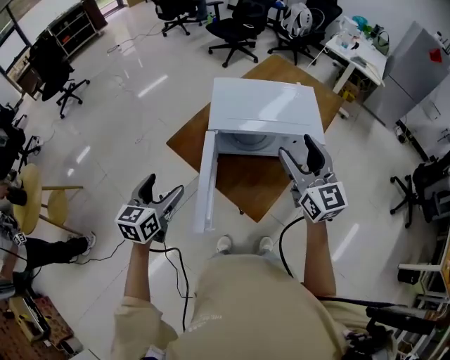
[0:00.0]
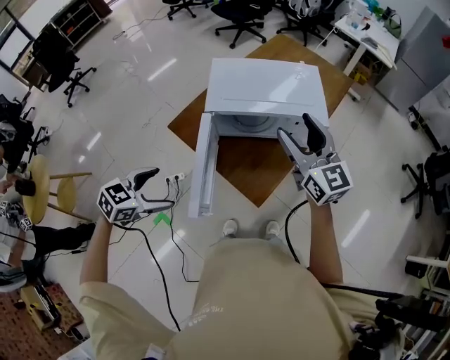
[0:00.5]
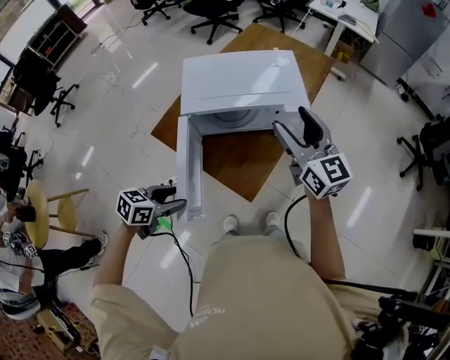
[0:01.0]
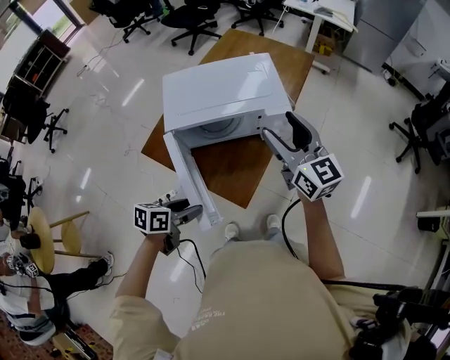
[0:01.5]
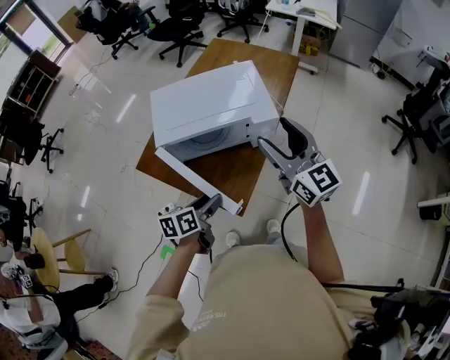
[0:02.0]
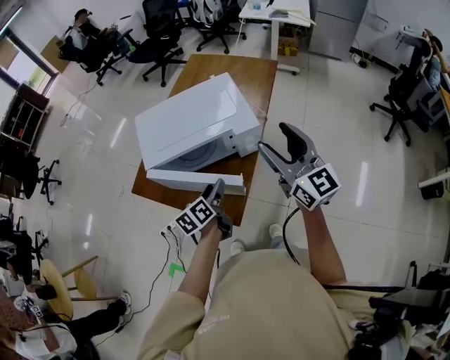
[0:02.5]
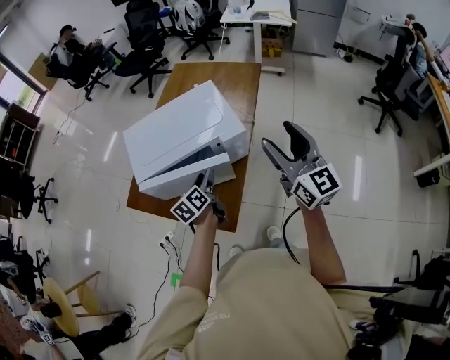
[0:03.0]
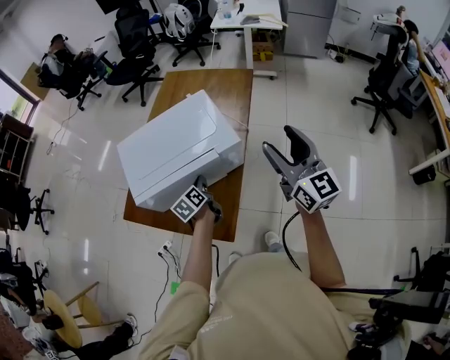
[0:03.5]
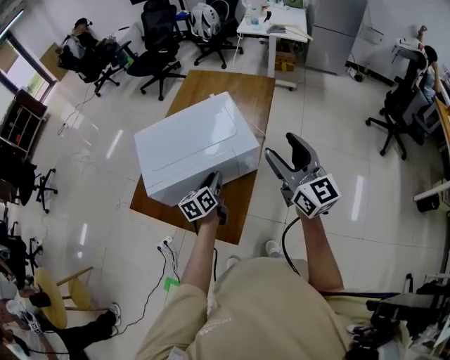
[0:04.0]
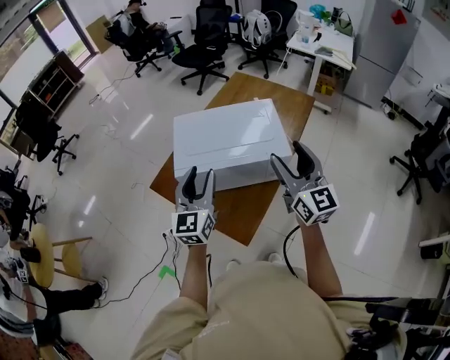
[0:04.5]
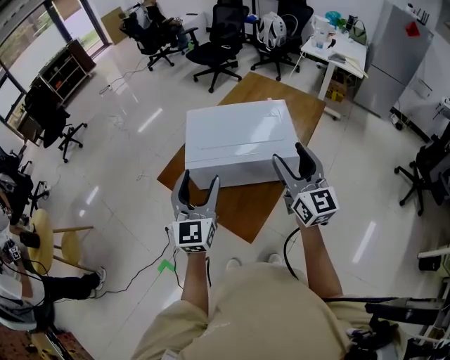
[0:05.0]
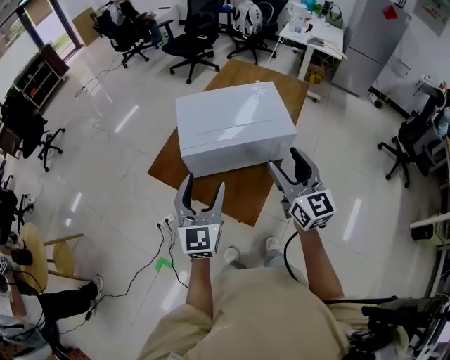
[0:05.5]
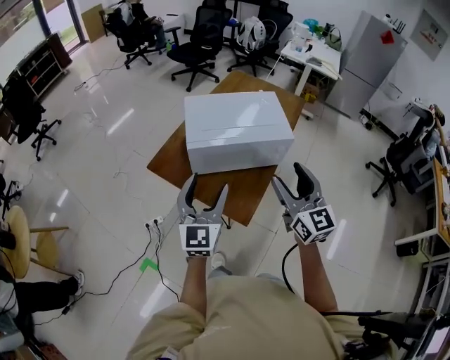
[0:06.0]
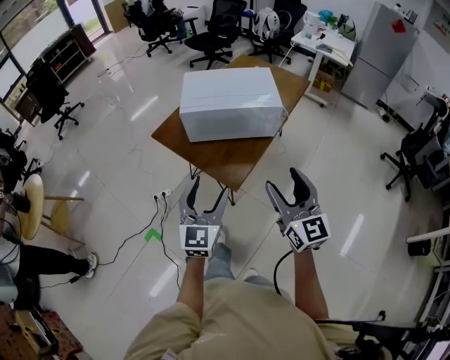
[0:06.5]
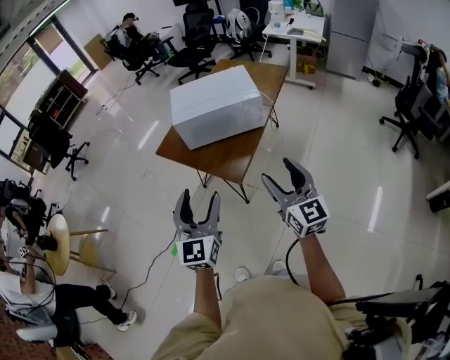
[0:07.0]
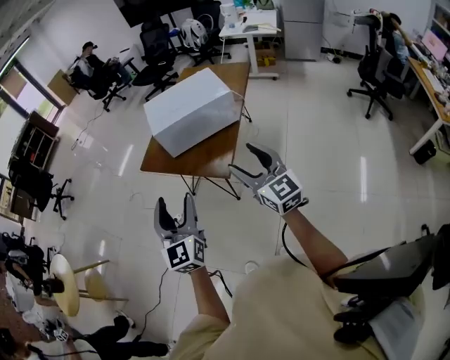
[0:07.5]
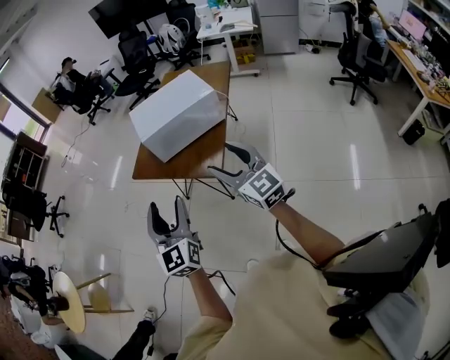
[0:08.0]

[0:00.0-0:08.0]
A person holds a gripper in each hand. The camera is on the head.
0:00.0 to 0:02.0: The left gripper goes approximately 30 cm to the right and downward, turns by approximately 40 degrees, and closes, while the right gripper is displaced to the right by approximately 15 cm.
0:02.0 to 0:04.0: The right gripper is displaced to the right by some 10 cm; the left gripper shifts some 20 cm forward and to the right, and closes up.
0:04.0 to 0:06.0: The left gripper moves to the left, backward and upward, some 40 cm, tips its fingers upward by about 30 degrees, and opens; the right gripper heads to the left and backward, covering some 35 cm.
0:06.0 to 0:08.0: The two grippers go roughly 25 cm backward.

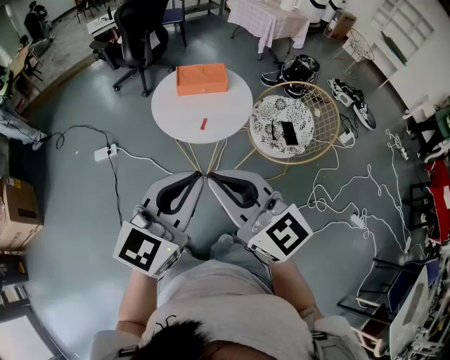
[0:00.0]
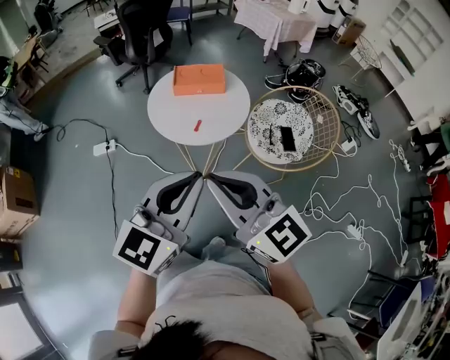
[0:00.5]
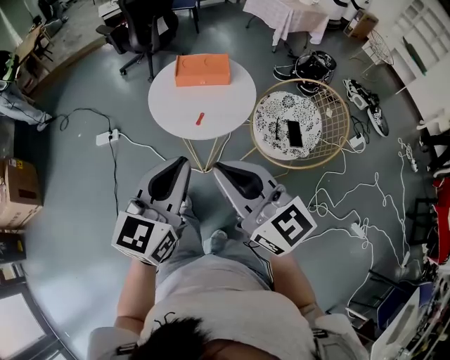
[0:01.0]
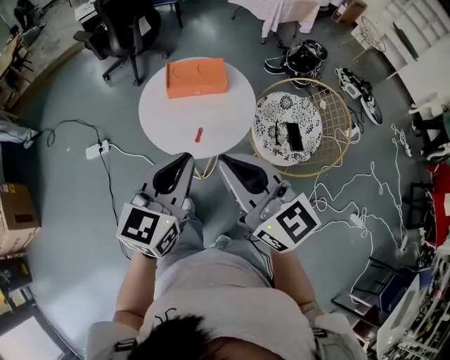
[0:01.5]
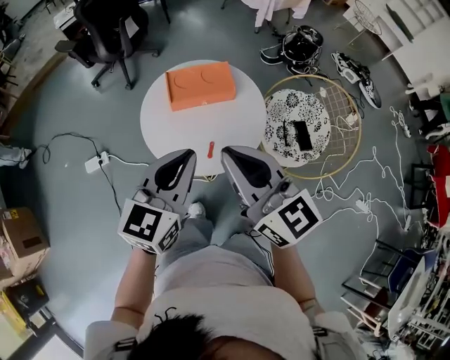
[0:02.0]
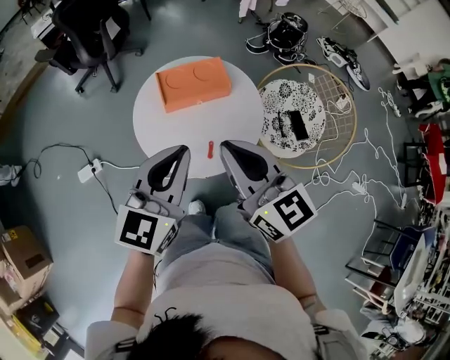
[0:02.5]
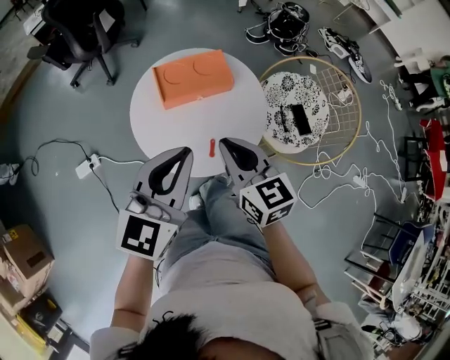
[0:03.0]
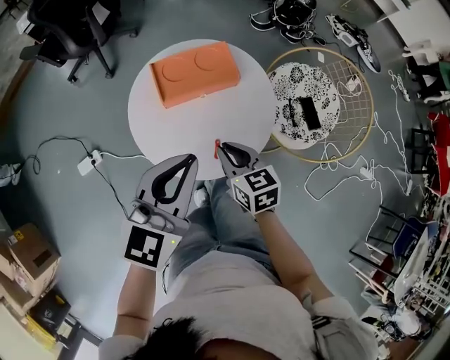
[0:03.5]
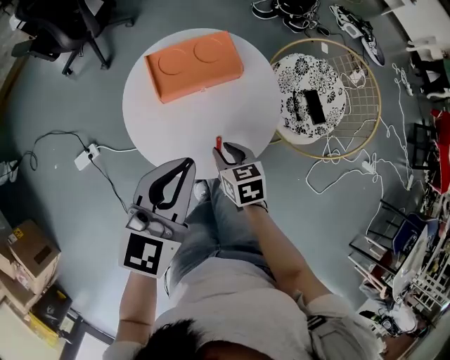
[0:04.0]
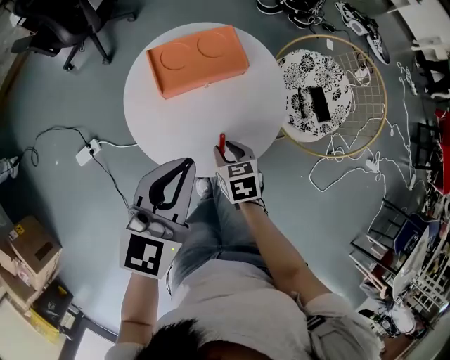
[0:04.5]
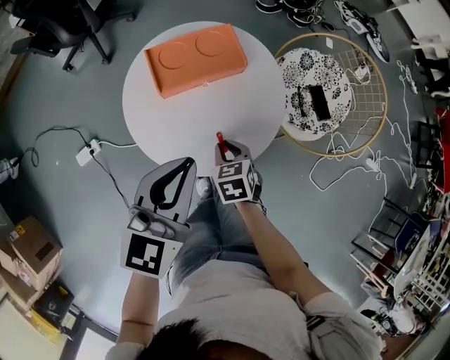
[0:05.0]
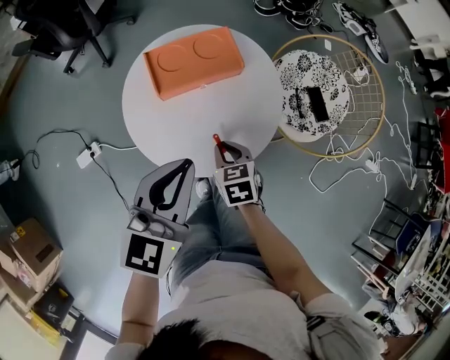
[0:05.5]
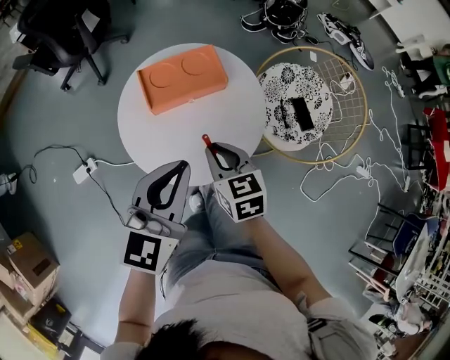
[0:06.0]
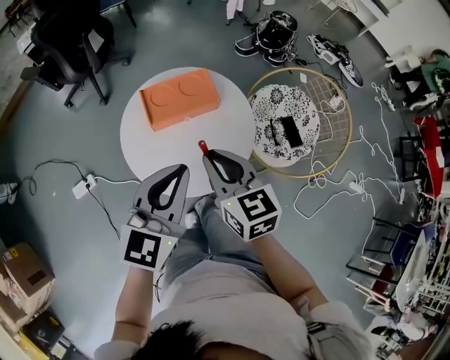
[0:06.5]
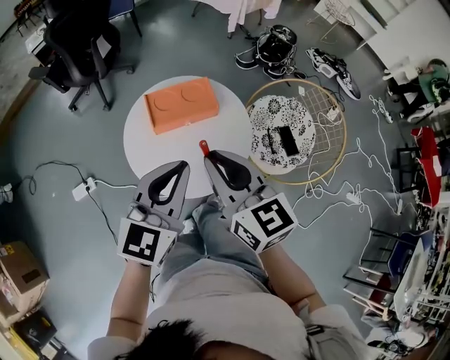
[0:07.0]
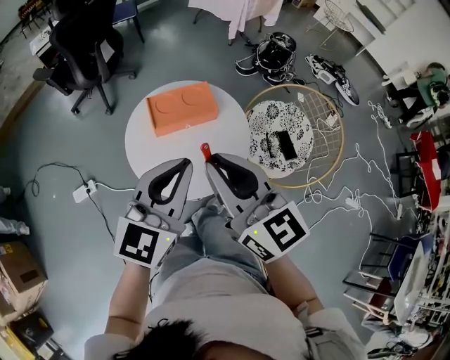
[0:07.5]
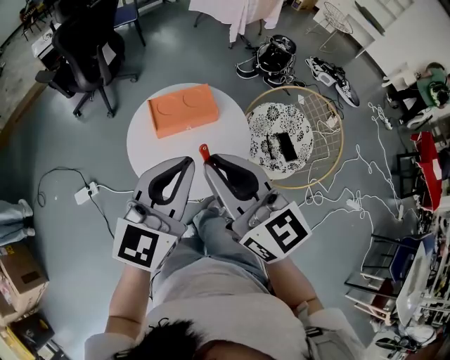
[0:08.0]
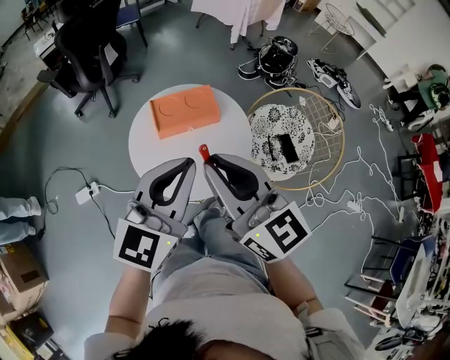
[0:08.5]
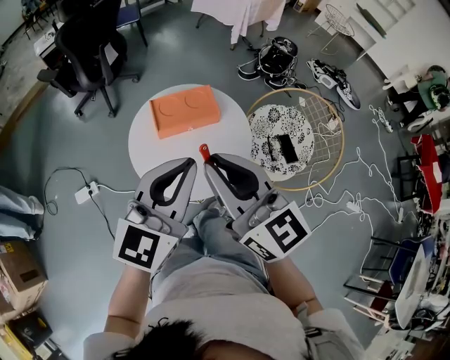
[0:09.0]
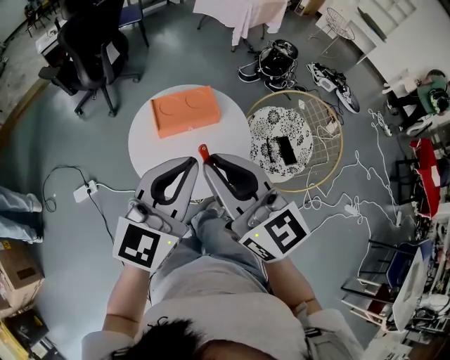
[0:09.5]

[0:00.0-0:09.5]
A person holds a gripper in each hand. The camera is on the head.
0:00.0 to 0:02.0: The two grippers go approximately 25 cm forward.
0:02.0 to 0:04.0: The left gripper is displaced forward and downward by approximately 10 cm, while the right gripper heads downward, covering roughly 35 cm, tips its fingers downward by approximately 50 degrees, and opens its fingers.
0:04.0 to 0:05.5: The grippers make only small movements.
0:05.5 to 0:07.5: The right gripper shifts some 35 cm upward, and tips its fingers upward by some 50 degrees; the left gripper shifts about 10 cm upward.
0:07.5 to 0:09.5: The grippers stay close to where they were, moving slightly.

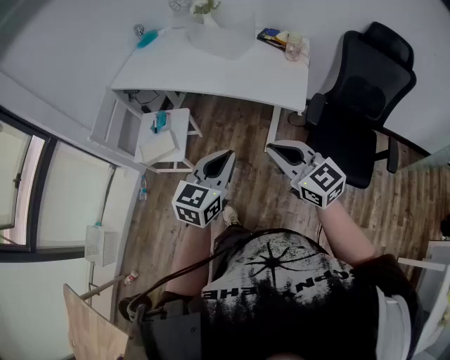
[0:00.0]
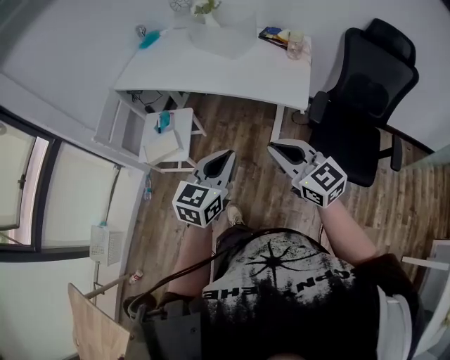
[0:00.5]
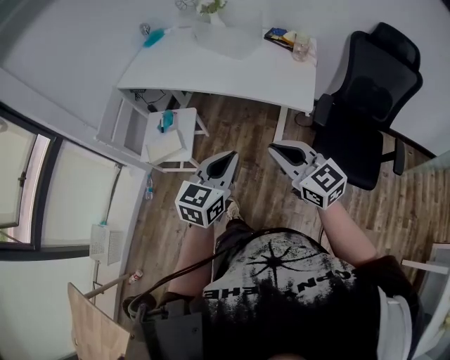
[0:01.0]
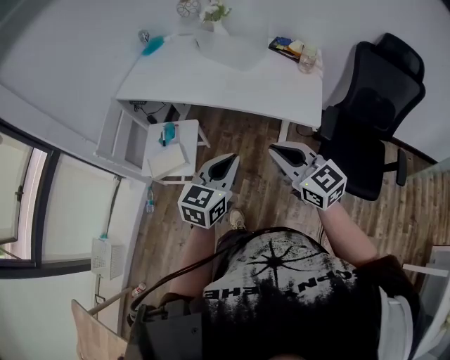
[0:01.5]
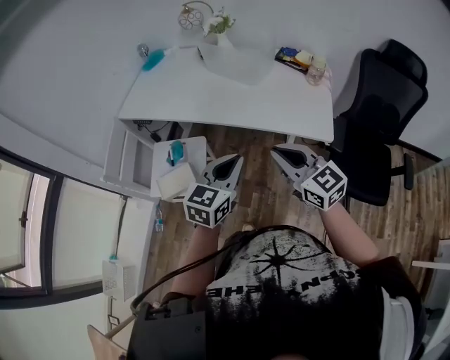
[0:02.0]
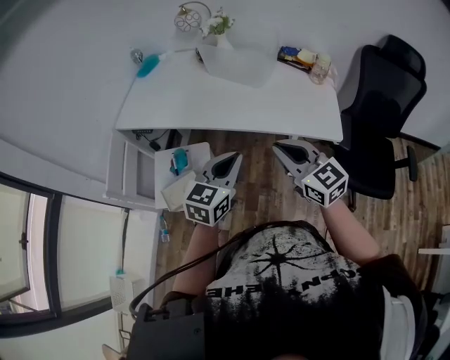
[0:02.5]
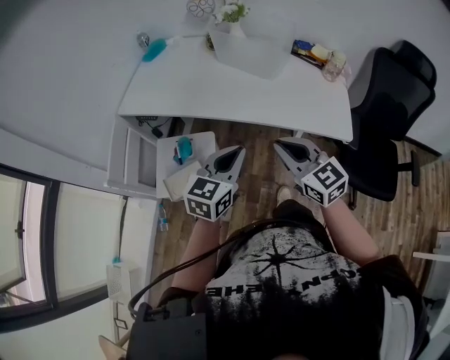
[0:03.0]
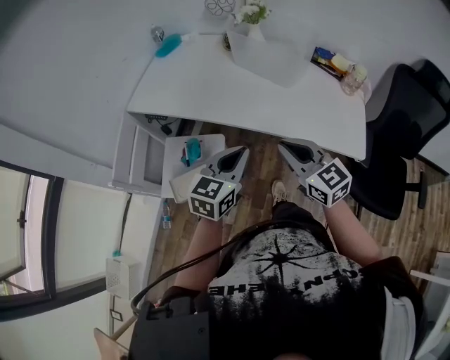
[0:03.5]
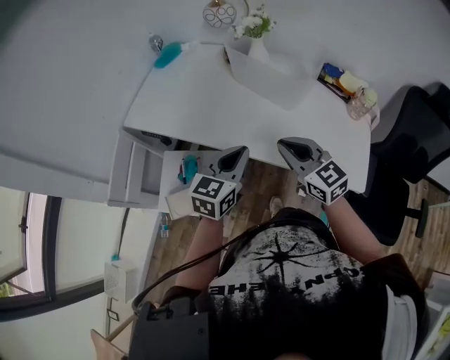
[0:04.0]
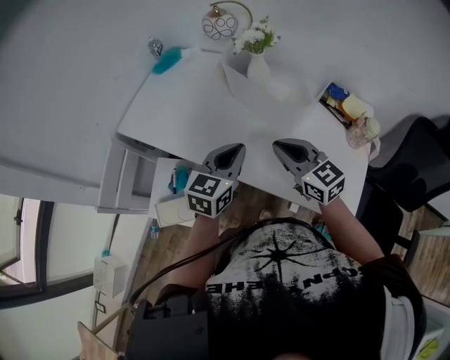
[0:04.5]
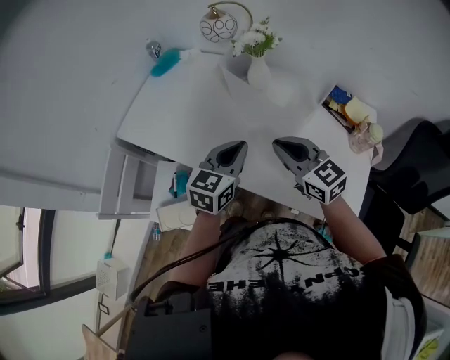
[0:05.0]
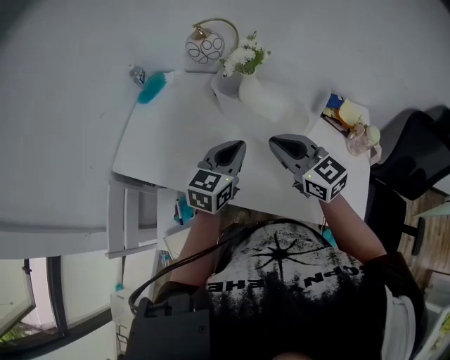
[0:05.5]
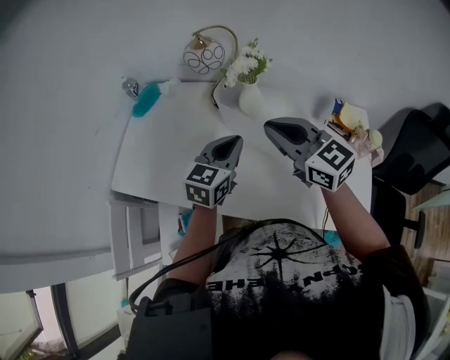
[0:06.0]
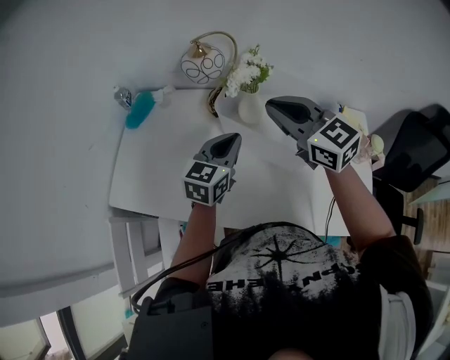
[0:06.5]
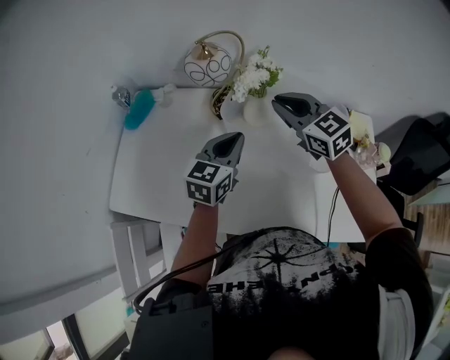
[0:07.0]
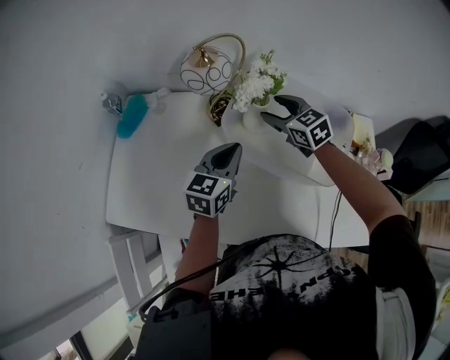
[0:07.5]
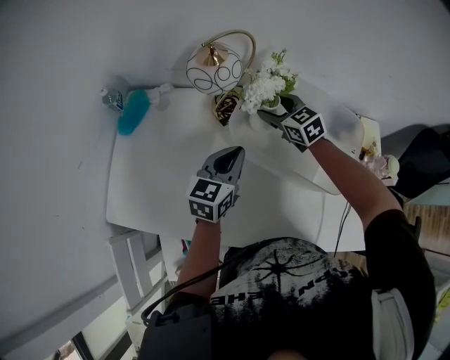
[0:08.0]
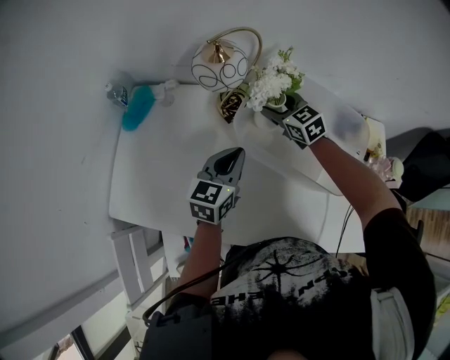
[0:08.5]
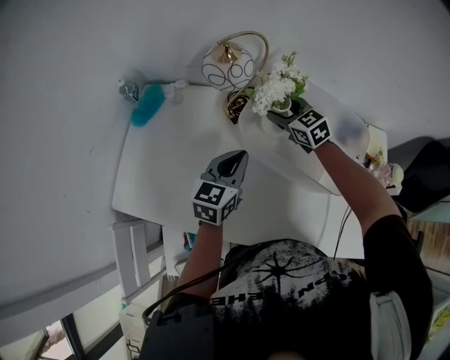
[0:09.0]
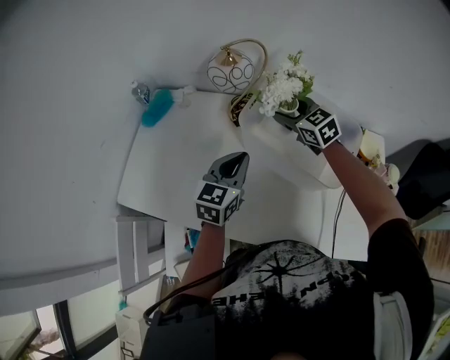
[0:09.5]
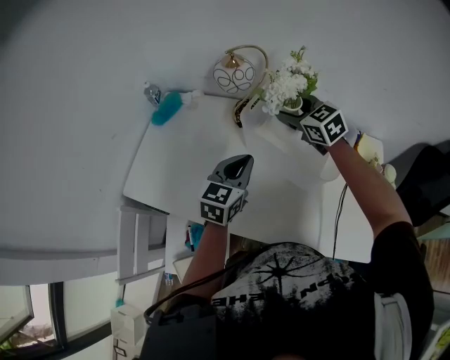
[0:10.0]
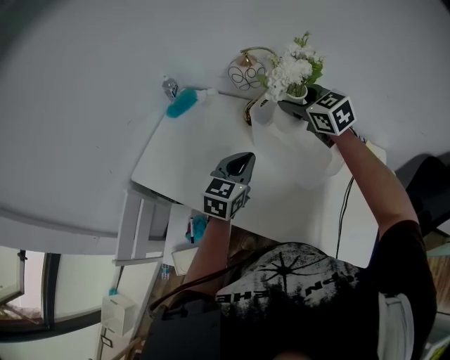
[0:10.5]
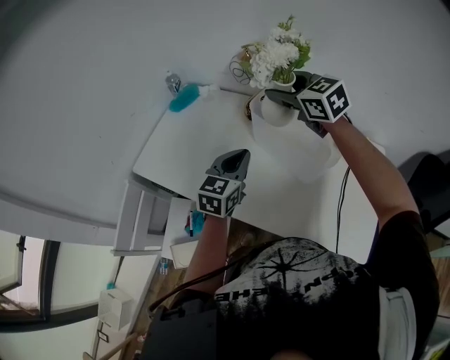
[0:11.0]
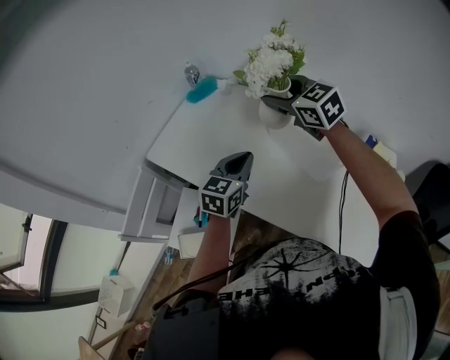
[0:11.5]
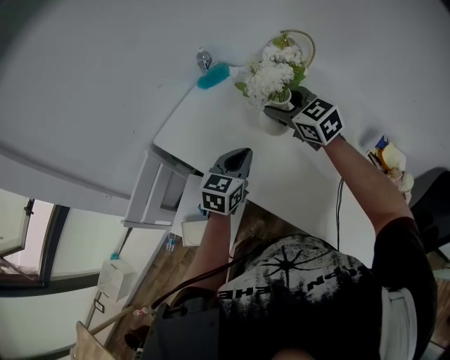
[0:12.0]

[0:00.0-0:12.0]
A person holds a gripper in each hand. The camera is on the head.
0:00.0 to 0:02.0: Both grippers travel together forward and to the left, some 20 cm.
0:02.0 to 0:04.0: The grippers both shift forward by about 25 cm.
0:04.0 to 0:06.0: The right gripper goes approximately 25 cm forward and upward. Meanwhile the left gripper heads forward, covering some 25 cm.
0:06.0 to 0:08.0: The right gripper shifts some 35 cm forward and downward, changes its angle by about 30 degrees, and opens up. The left gripper moves forward and downward, roughly 15 cm.
0:08.0 to 0:10.0: The left gripper shifts approximately 10 cm backward and upward. Meanwhile the right gripper is displaced upward and backward by roughly 15 cm.
0:10.0 to 0:12.0: Both grippers travel together to the left and backward, some 15 cm. The right gripper turns by about 20 degrees.
